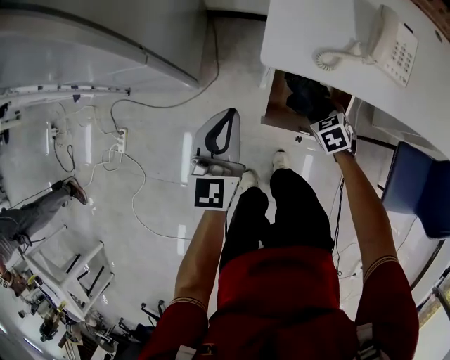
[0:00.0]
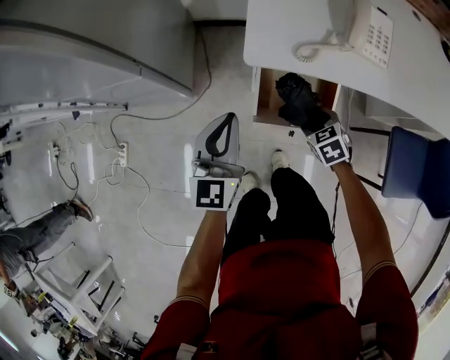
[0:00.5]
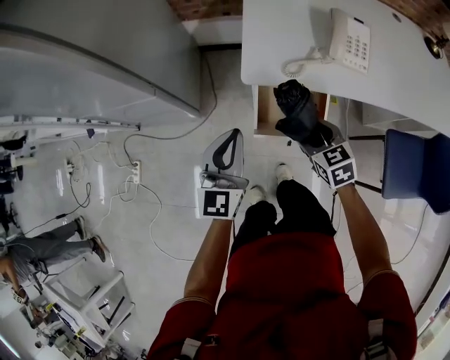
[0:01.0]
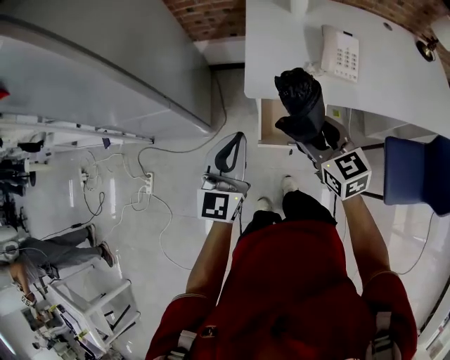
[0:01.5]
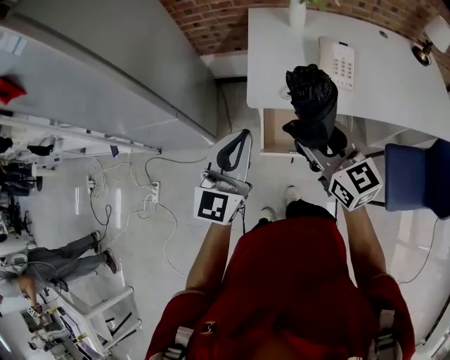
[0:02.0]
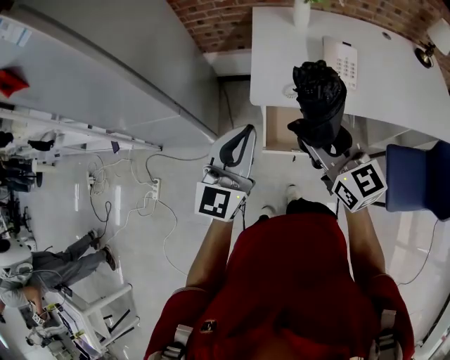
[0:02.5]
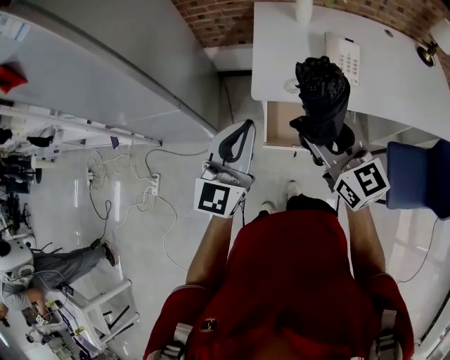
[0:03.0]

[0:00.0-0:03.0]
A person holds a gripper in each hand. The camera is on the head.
0:00.0 to 0:01.5: The right gripper travels upward by some 35 cm, and points its fingers some 40 degrees further upward. Meanwhile the left gripper is displaced upward and backward by about 15 cm.
0:01.5 to 0:03.0: Both grippers move upward, about 10 cm.

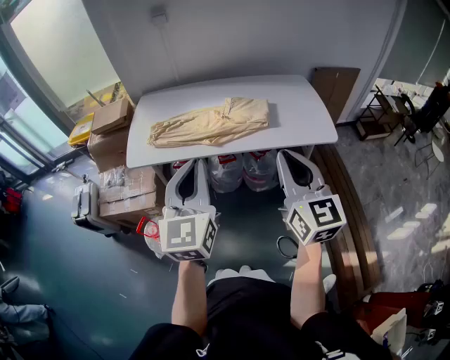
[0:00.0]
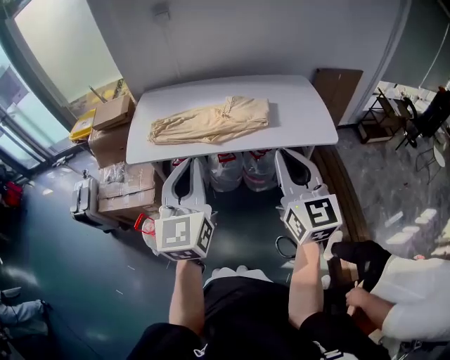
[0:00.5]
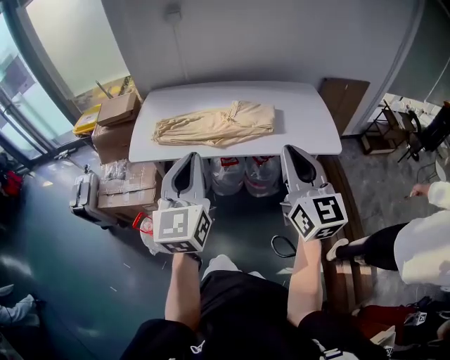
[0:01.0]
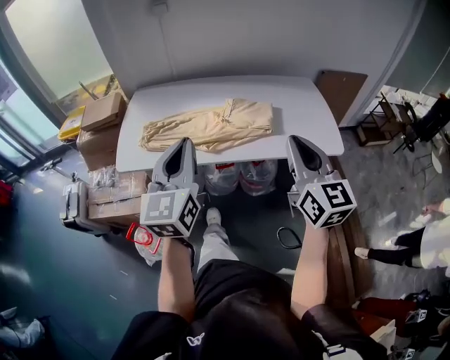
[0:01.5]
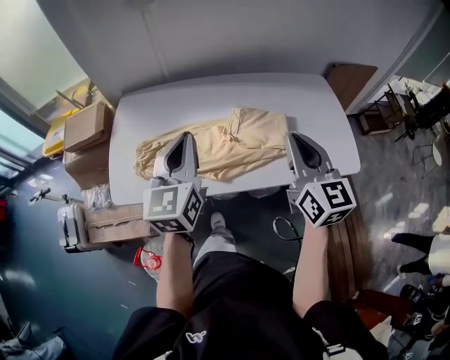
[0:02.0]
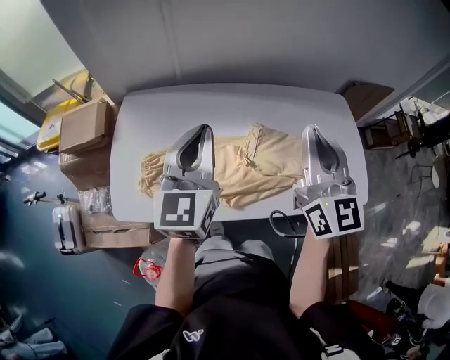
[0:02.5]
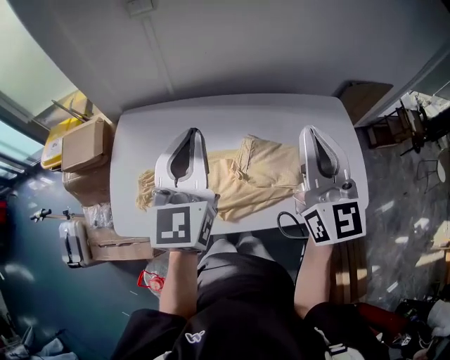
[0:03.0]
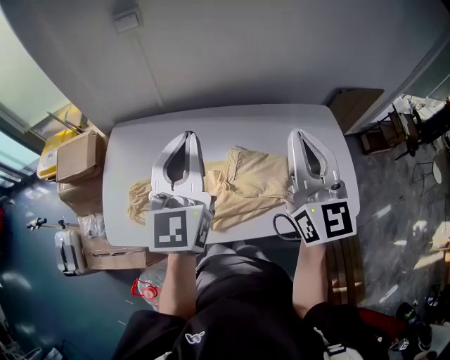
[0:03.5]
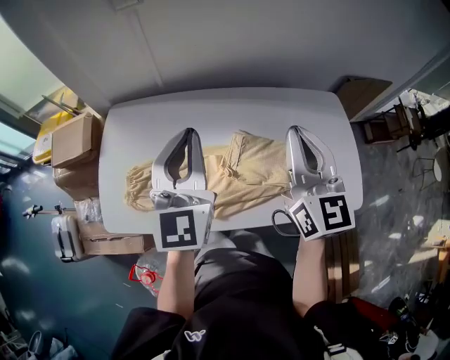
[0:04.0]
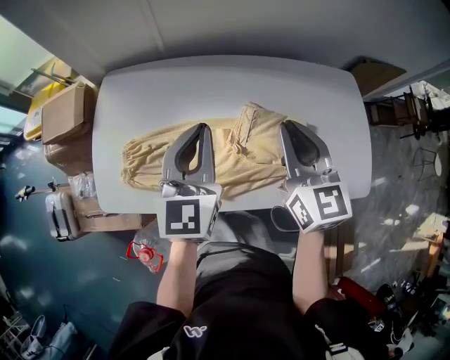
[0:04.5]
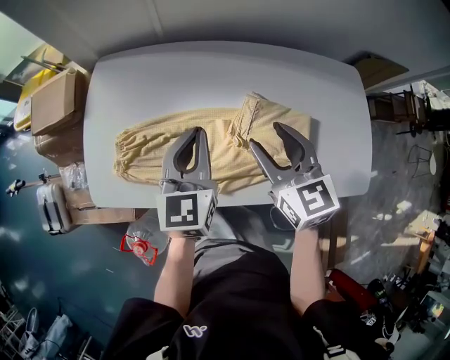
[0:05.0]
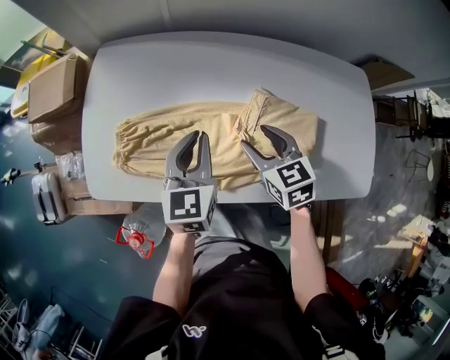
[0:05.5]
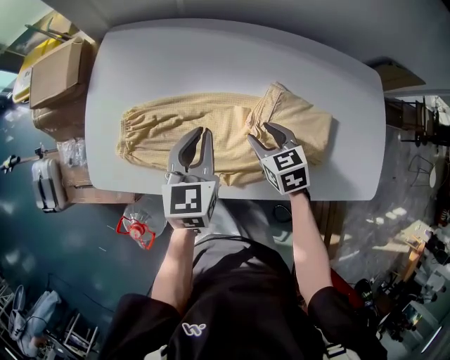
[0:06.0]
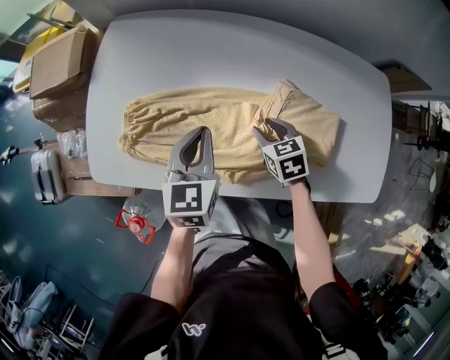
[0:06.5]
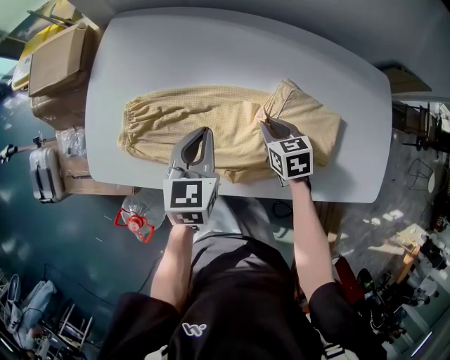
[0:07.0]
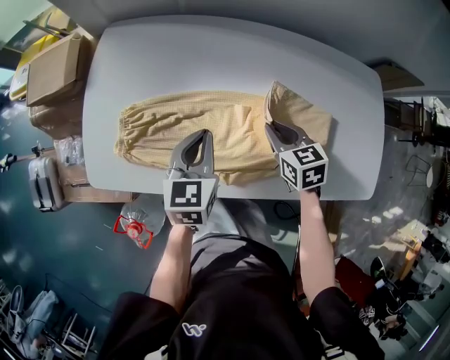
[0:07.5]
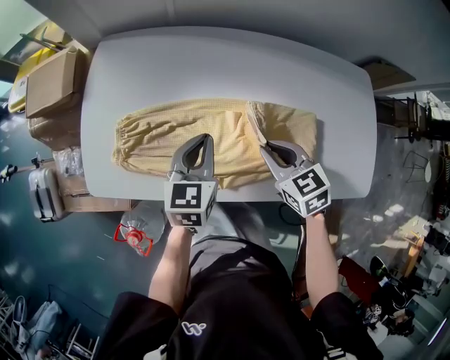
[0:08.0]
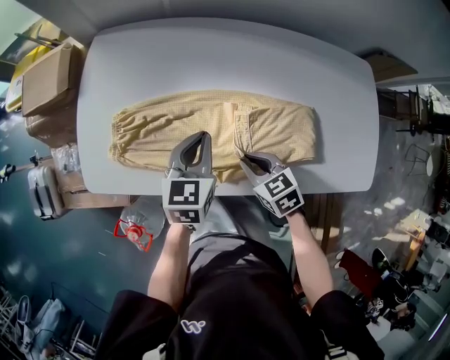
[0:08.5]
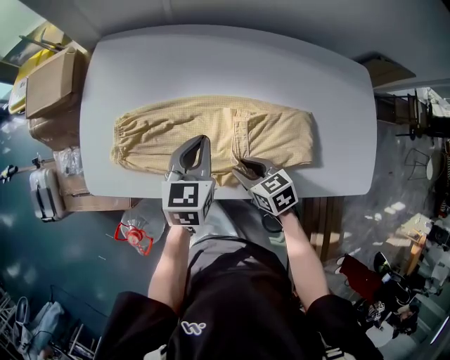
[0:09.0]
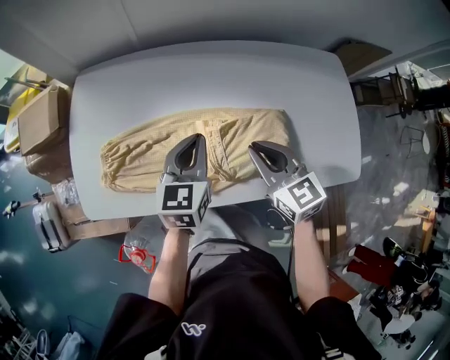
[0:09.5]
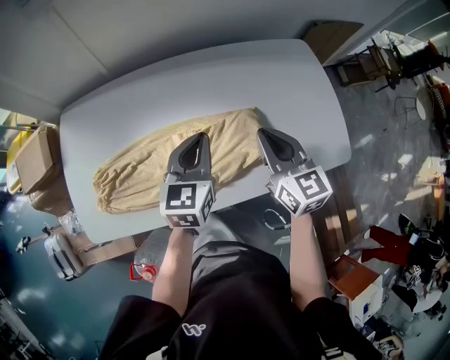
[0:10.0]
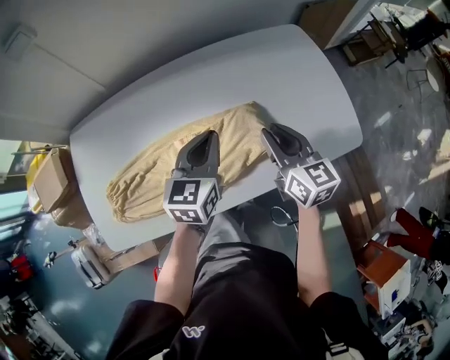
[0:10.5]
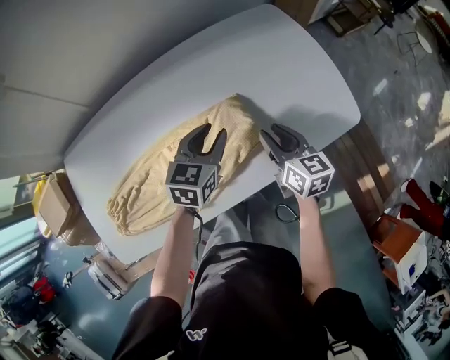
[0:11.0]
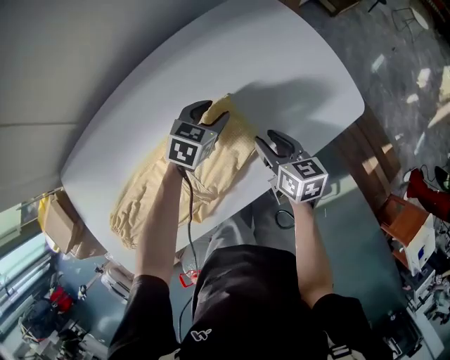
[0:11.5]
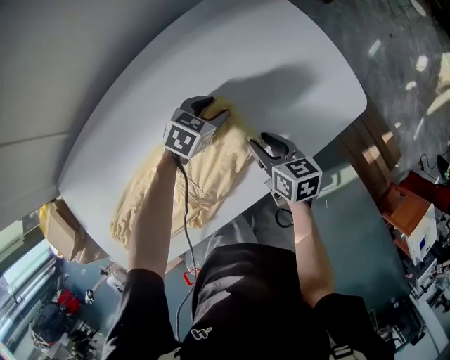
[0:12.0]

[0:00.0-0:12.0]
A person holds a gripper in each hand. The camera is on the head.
0:00.0 to 0:02.0: The two grippers go some 35 cm forward.
0:02.0 to 0:04.0: The grippers both shift forward by some 15 cm.
0:04.0 to 0:06.0: The grippers both shift downward by some 30 cm. The left gripper swivels about 30 degrees, while the right gripper angles its fingers downward, by roughly 50 degrees, and opens.
0:06.0 to 0:08.0: The right gripper heads upward, covering about 5 cm, and closes its fingers.
0:08.0 to 0:10.0: The right gripper changes place by approximately 20 cm, swivels some 40 degrees, and opens, then closes once more, while the left gripper shifts by approximately 15 cm.
0:10.0 to 0:12.0: The left gripper ends up some 30 cm from where it was, changes its angle by roughly 60 degrees, and opens up; the right gripper shifts approximately 20 cm downward, rotates roughly 40 degrees, and opens.

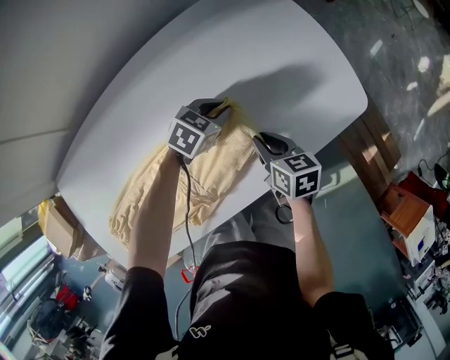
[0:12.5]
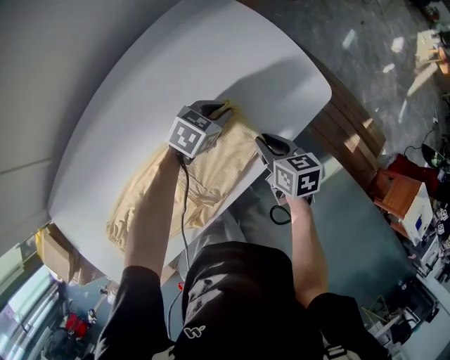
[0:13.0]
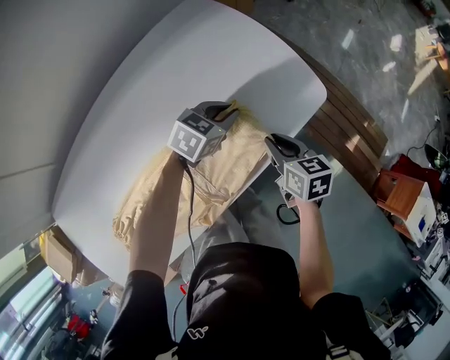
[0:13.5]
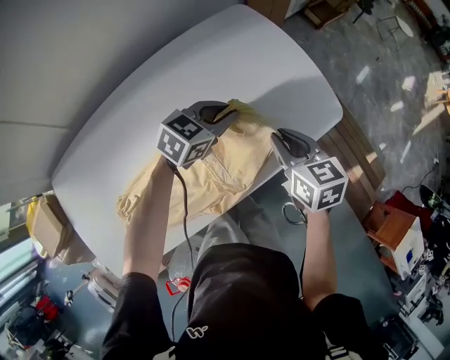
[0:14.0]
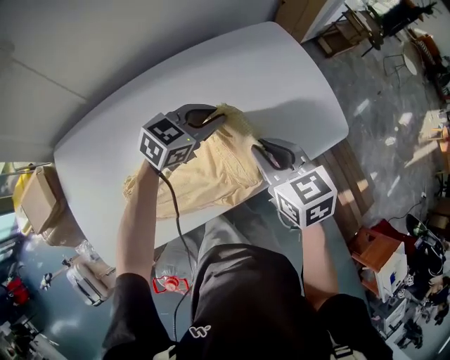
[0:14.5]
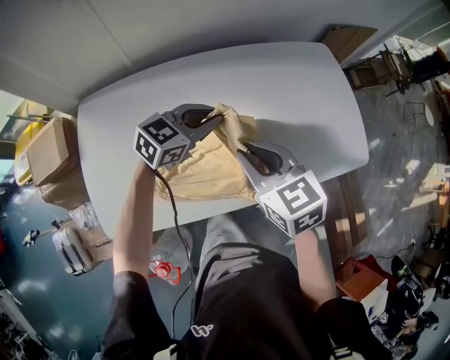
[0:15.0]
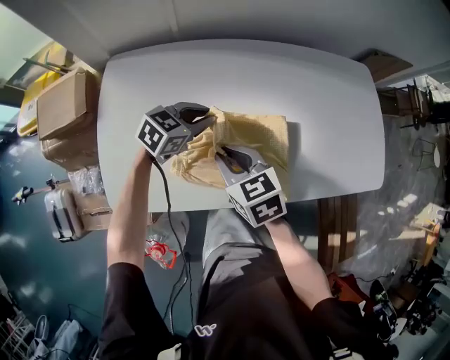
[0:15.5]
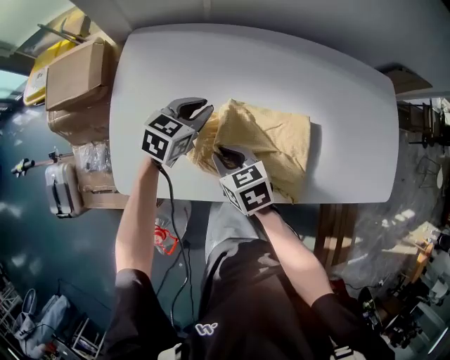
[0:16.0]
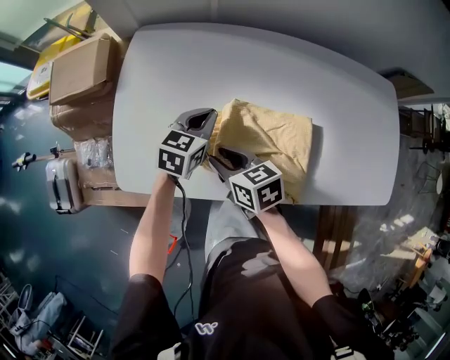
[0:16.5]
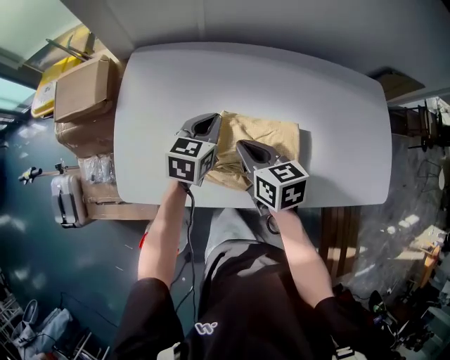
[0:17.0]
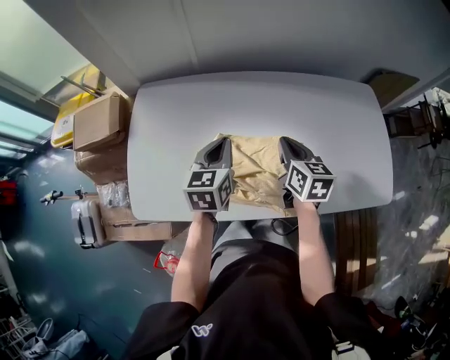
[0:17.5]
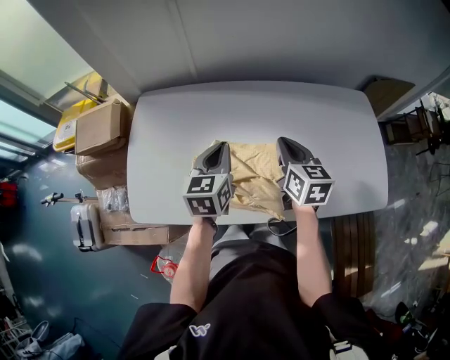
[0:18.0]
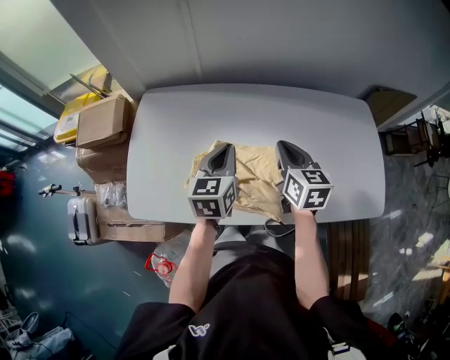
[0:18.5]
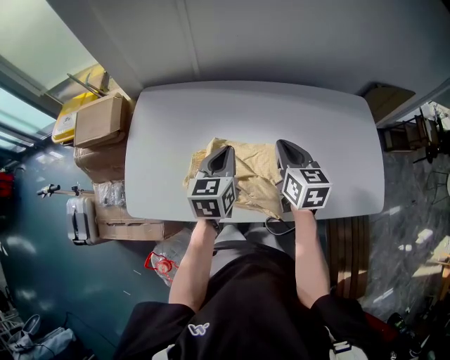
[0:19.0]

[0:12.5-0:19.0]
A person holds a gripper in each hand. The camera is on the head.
0:12.5 to 0:14.5: The right gripper is displaced upward by some 20 cm, and rotates roughly 30 degrees. Meanwhile the left gripper shifts some 20 cm upward and backward, moves roughly 15 cm to the right and comes back, and turns by some 20 degrees.
0:14.5 to 0:17.0: The left gripper shifts by approximately 35 cm, and turns by about 60 degrees. The right gripper ends up roughly 35 cm from where it was, and rotates approximately 30 degrees.
0:17.0 to 0:19.0: The left gripper moves upward and to the right, some 10 cm; the right gripper moves to the right and upward, roughly 15 cm, and rotates about 20 degrees.

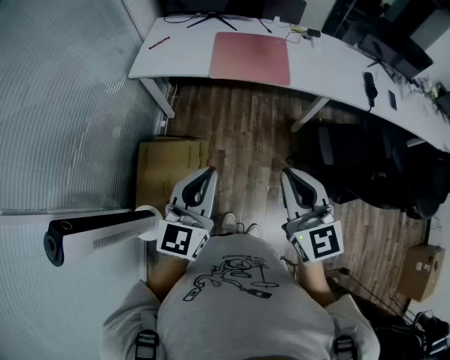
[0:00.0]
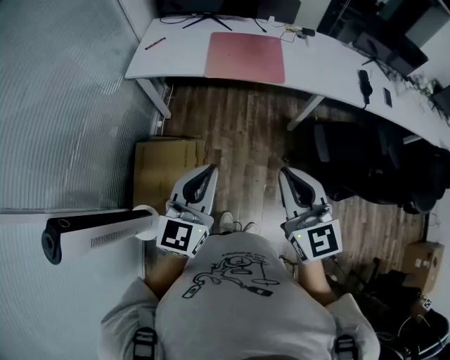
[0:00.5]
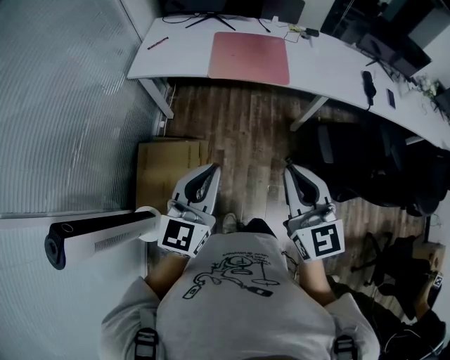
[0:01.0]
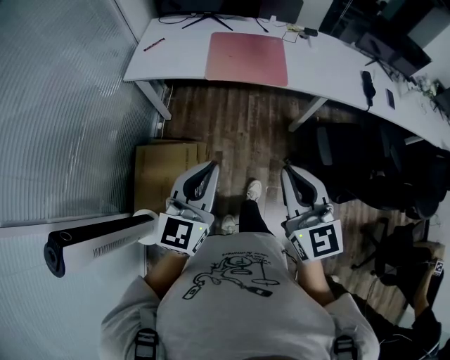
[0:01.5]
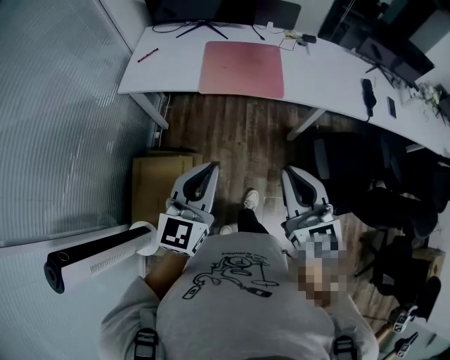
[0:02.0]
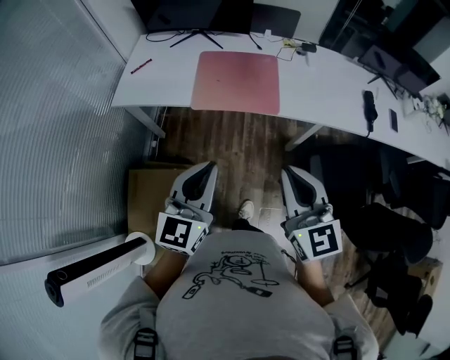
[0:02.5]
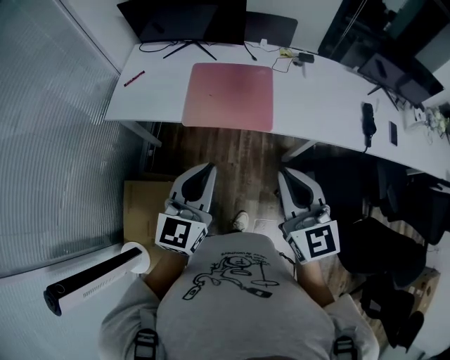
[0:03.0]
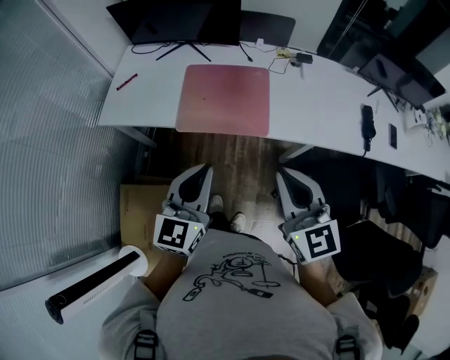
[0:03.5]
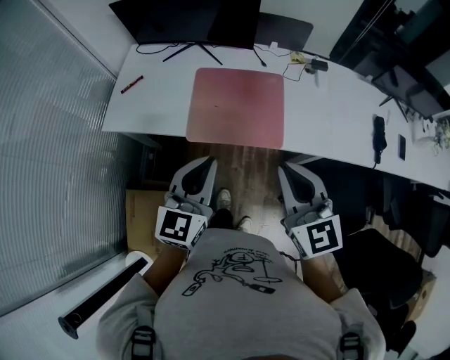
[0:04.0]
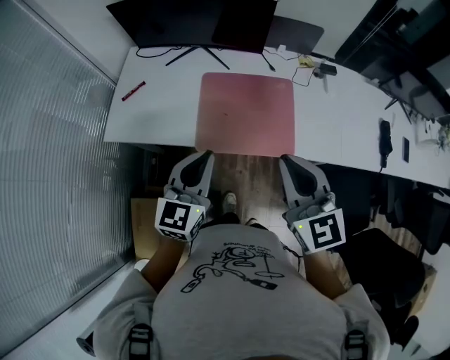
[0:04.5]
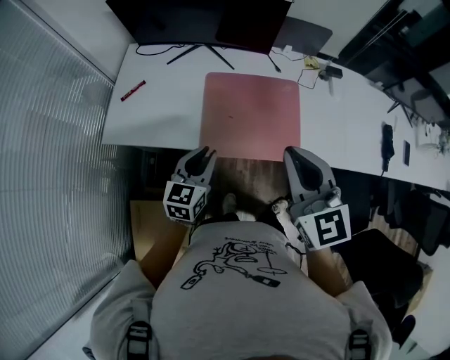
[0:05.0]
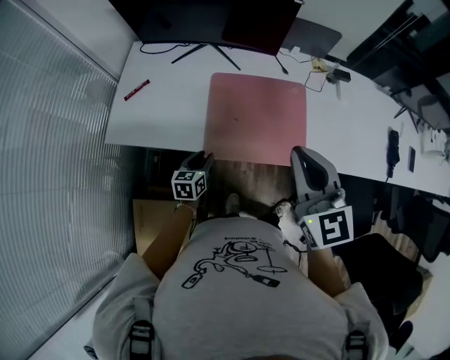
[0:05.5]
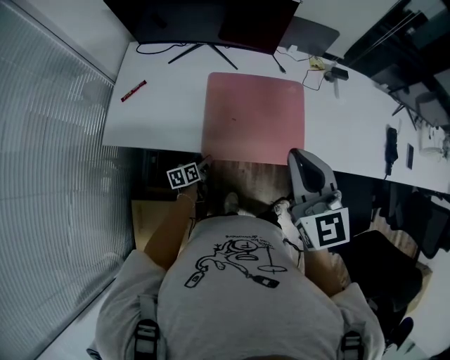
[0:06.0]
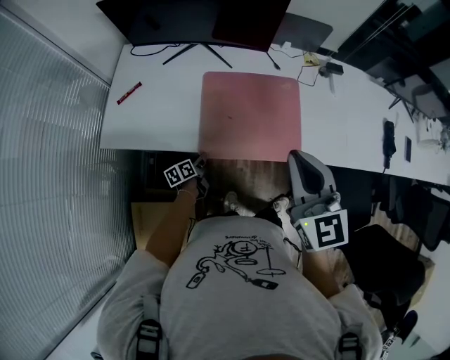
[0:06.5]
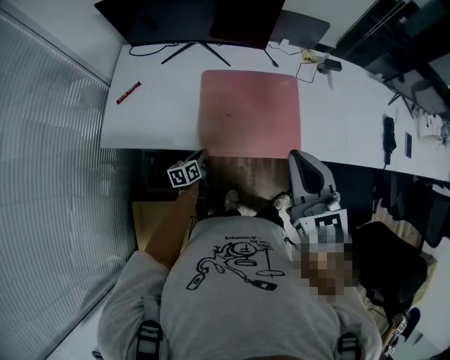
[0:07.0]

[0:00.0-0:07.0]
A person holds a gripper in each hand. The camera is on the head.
0:00.0 to 0:02.0: The grippers both shift forward by about 10 cm.
0:02.0 to 0:03.5: The grippers both shift forward and to the right by approximately 25 cm.
0:03.5 to 0:05.0: The left gripper shifts roughly 30 cm forward, to the left and downward; the right gripper heads forward and to the left, covering about 25 cm.
0:05.0 to 0:07.0: The left gripper is displaced downward by approximately 25 cm, turns by approximately 40 degrees, and opens, then closes once more.
